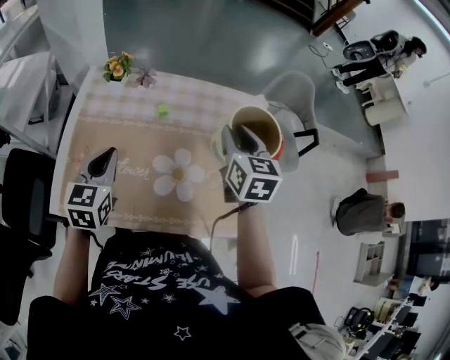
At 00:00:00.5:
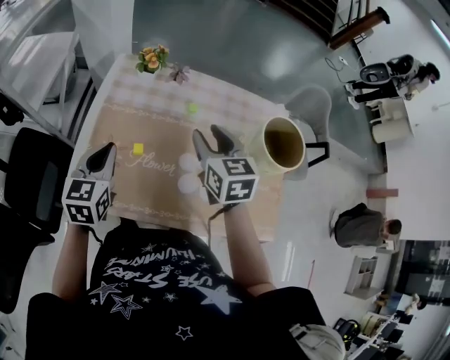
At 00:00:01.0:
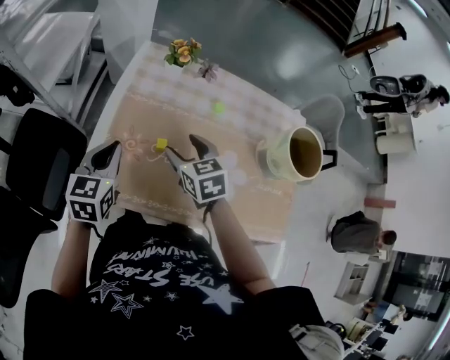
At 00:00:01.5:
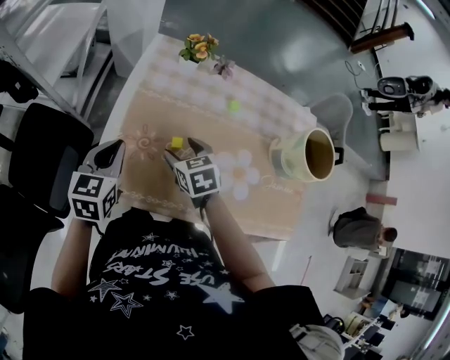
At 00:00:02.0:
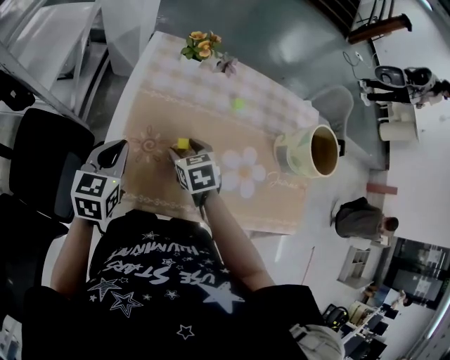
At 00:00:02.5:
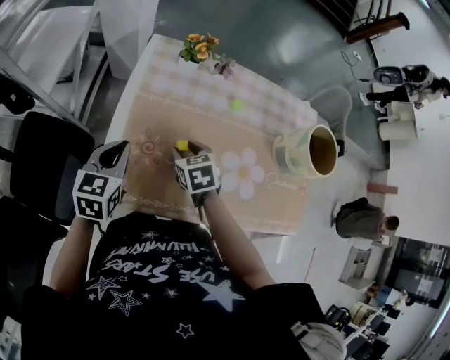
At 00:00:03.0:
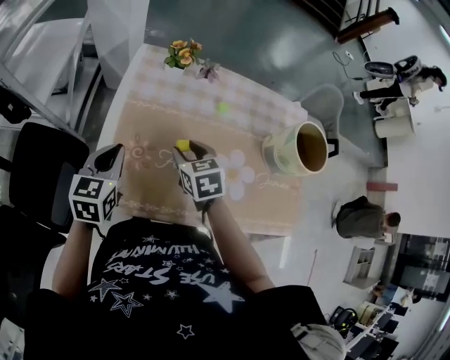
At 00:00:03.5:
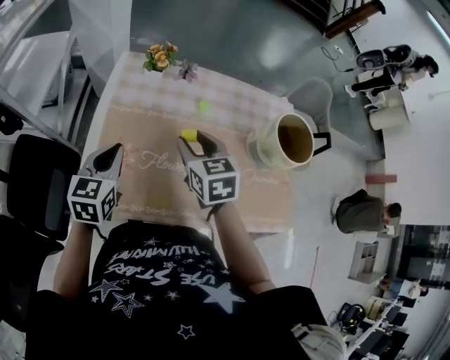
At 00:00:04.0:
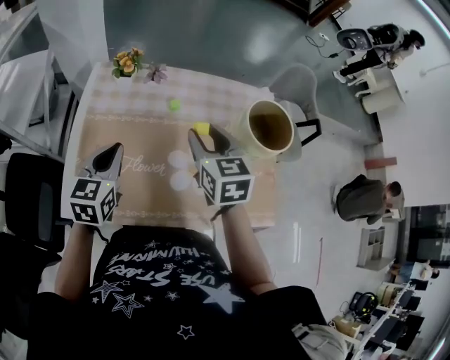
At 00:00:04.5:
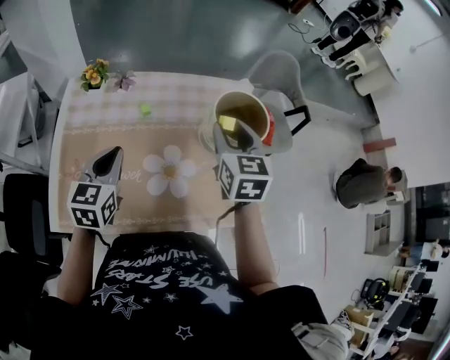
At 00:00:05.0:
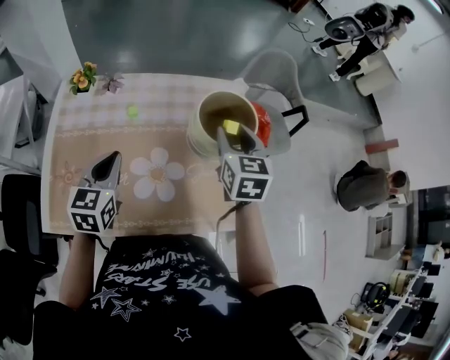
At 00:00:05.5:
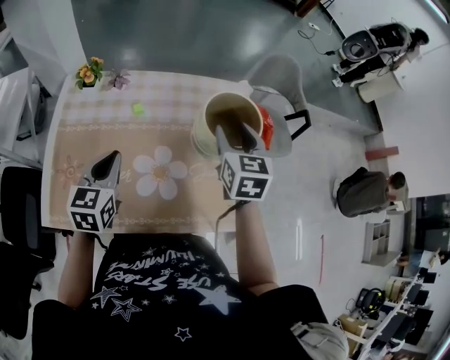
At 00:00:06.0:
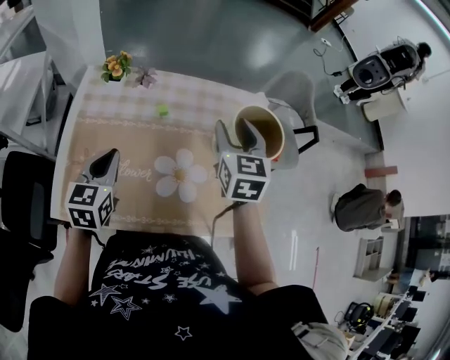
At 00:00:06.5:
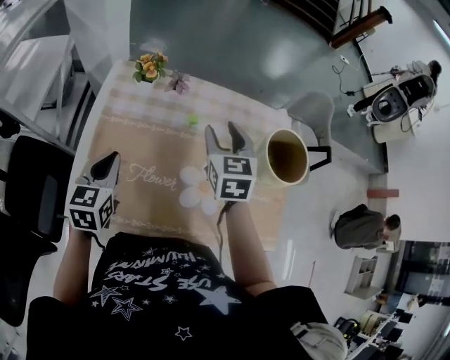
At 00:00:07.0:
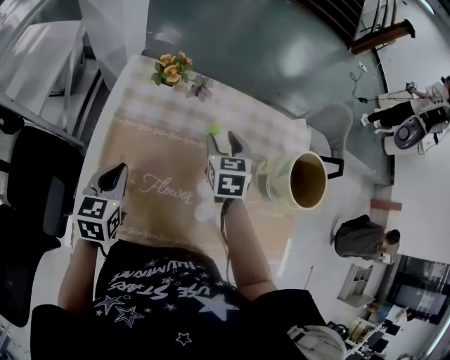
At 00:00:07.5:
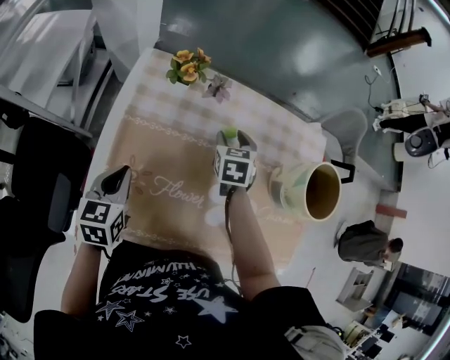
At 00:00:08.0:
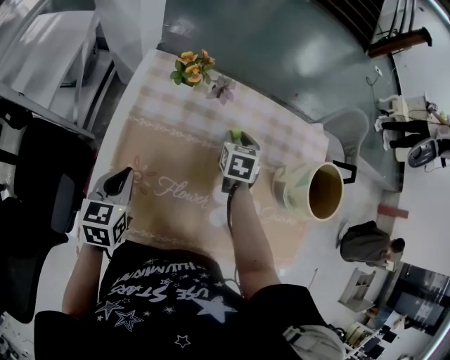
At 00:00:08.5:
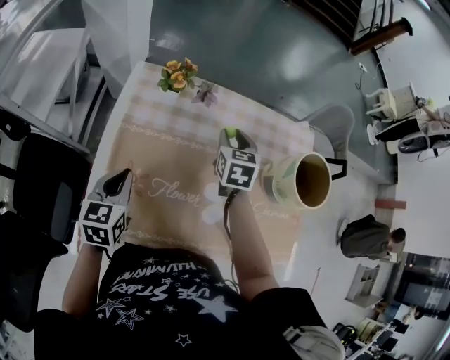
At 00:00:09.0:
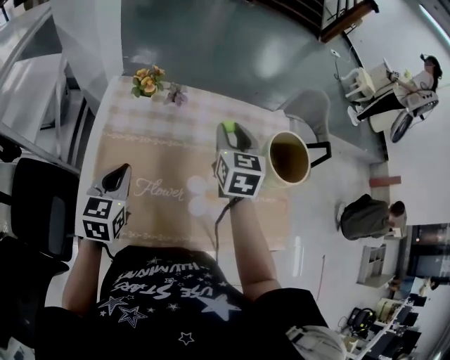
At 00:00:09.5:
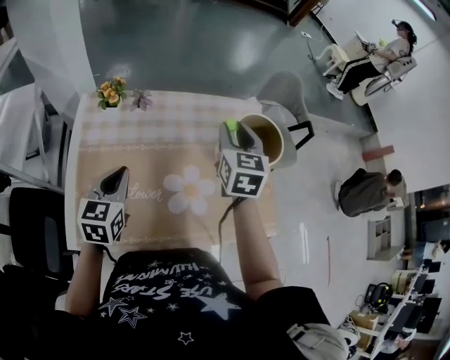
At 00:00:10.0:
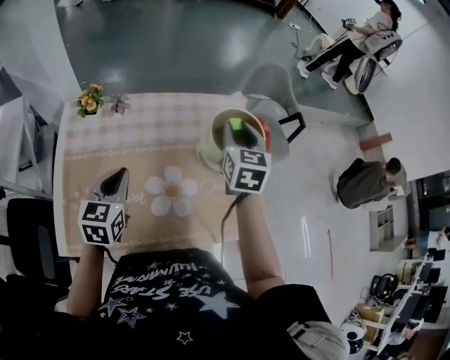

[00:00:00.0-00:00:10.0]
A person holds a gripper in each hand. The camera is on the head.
00:00:00.0 to 00:00:02.0: The right gripper moves to the left and downward, approximately 40 cm, turns by roughly 40 degrees, and opens up, while the left gripper travels to the left by roughly 20 cm.
00:00:02.0 to 00:00:04.0: The left gripper heads to the right and upward, covering some 15 cm; the right gripper is displaced to the right and upward by approximately 30 cm, and changes its angle by about 30 degrees.
00:00:04.0 to 00:00:06.0: The left gripper reaches some 15 cm to the right, then returns, while the right gripper shifts approximately 10 cm to the right and forward.
00:00:06.0 to 00:00:08.0: The left gripper moves to the left and downward, some 15 cm; the right gripper travels downward, to the left and forward by approximately 30 cm, and changes its angle by some 30 degrees.
00:00:08.0 to 00:00:10.0: The right gripper moves to the right and upward, some 35 cm, and changes its angle by approximately 30 degrees. Meanwhile the left gripper shifts some 20 cm to the right and upward, and changes its angle by roughly 20 degrees.

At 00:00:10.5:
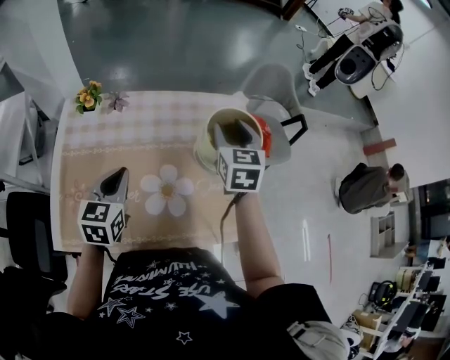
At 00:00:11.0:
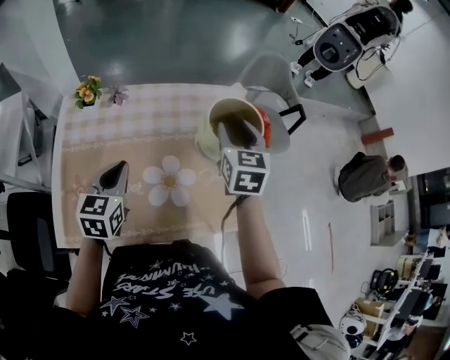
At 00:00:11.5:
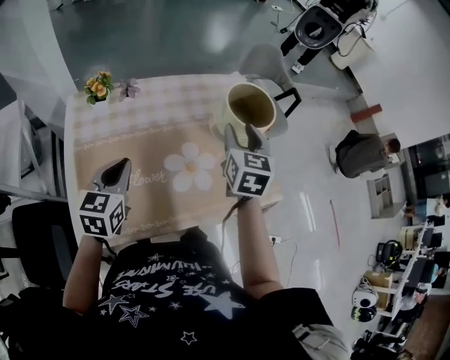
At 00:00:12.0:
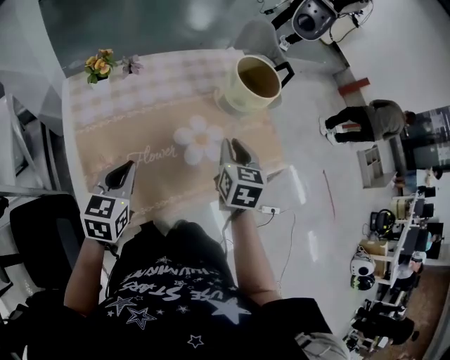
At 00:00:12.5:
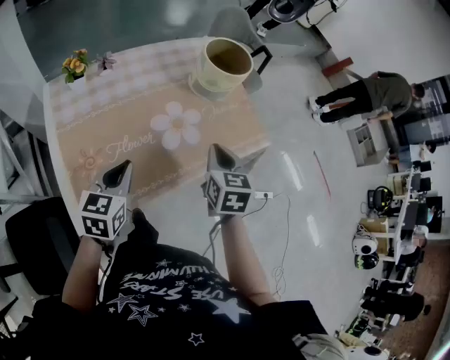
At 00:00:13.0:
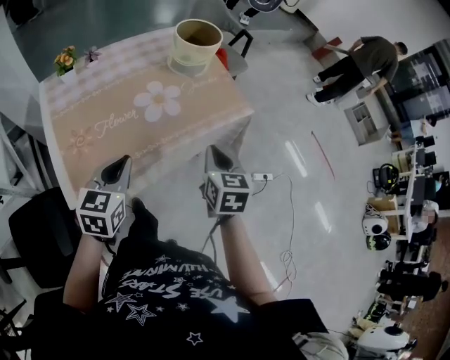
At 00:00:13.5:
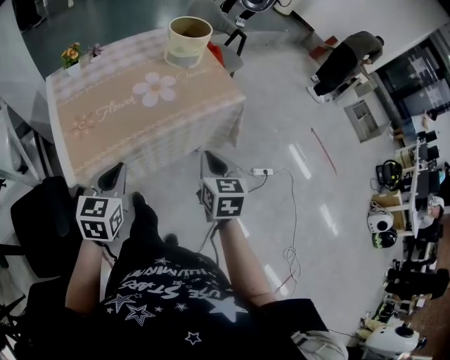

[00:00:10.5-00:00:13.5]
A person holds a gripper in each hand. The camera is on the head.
00:00:10.5 to 00:00:12.0: The left gripper goes some 15 cm backward and to the left, and rotates approximately 20 degrees, while the right gripper travels backward by about 25 cm, changes its angle by about 30 degrees, and closes its fingers.
00:00:12.0 to 00:00:13.5: The two grippers go some 30 cm backward and to the right.

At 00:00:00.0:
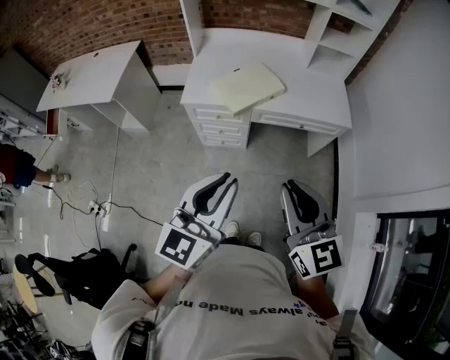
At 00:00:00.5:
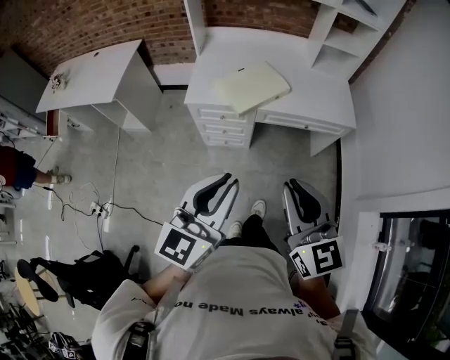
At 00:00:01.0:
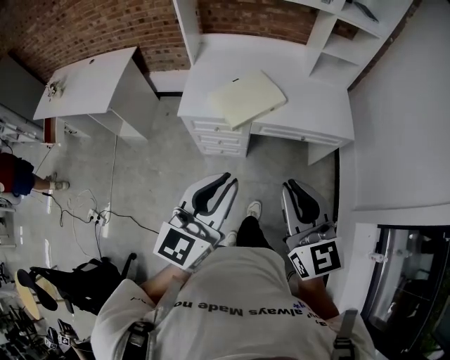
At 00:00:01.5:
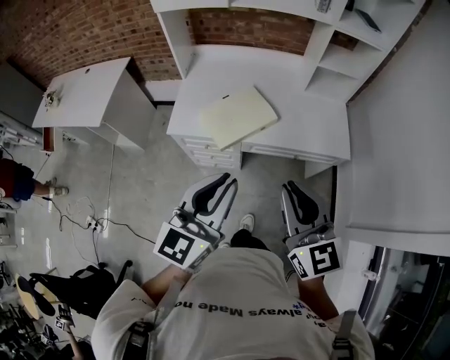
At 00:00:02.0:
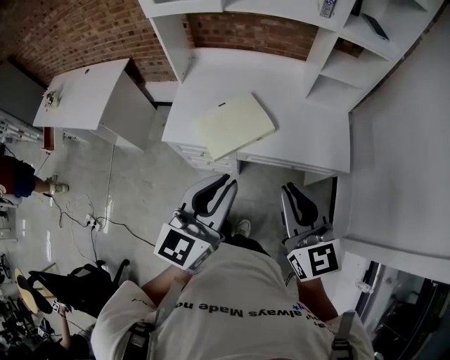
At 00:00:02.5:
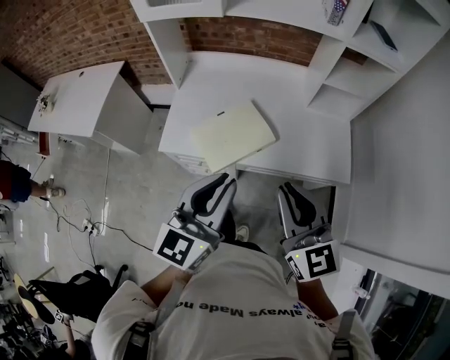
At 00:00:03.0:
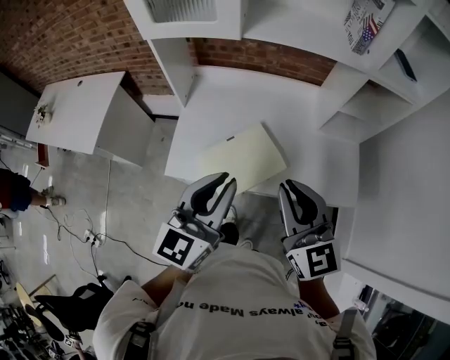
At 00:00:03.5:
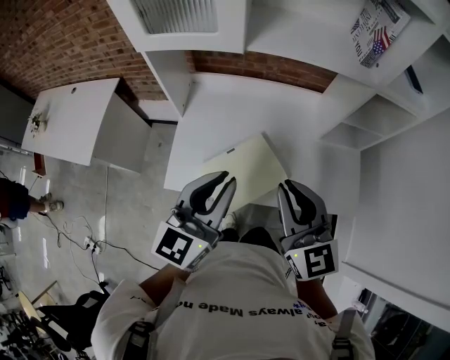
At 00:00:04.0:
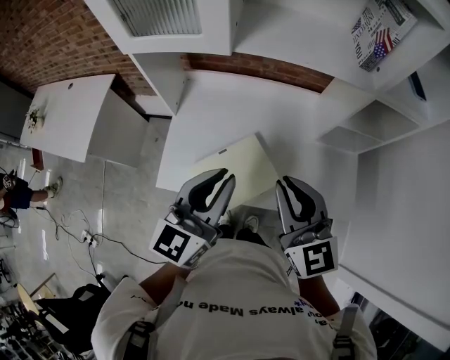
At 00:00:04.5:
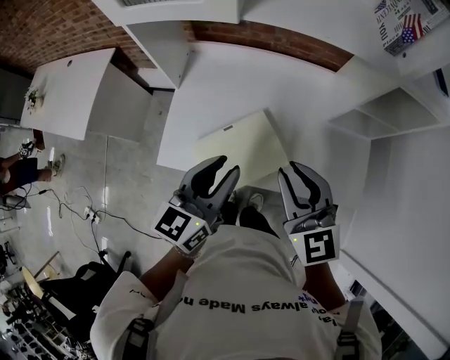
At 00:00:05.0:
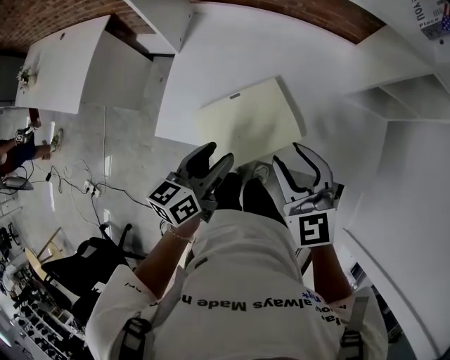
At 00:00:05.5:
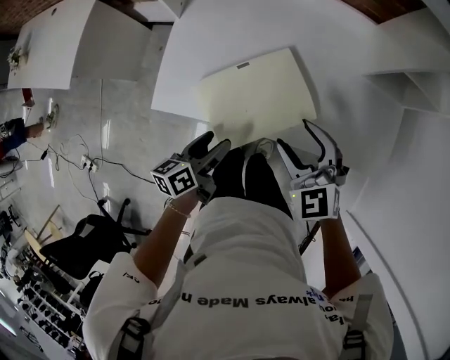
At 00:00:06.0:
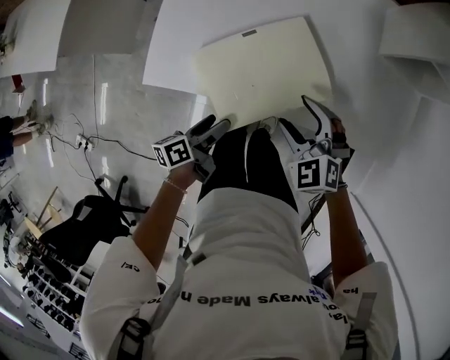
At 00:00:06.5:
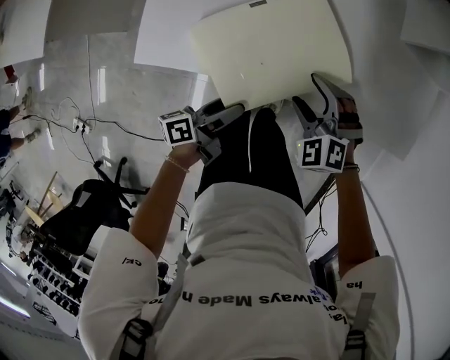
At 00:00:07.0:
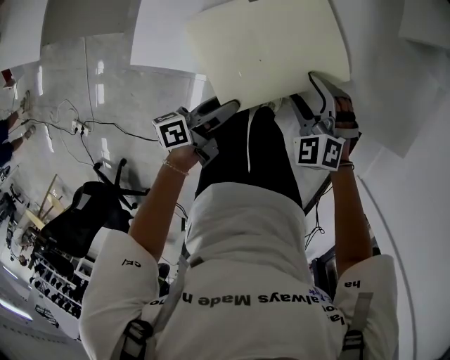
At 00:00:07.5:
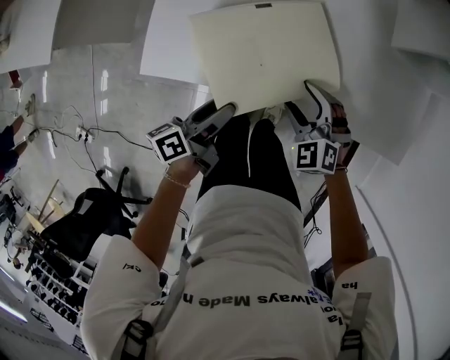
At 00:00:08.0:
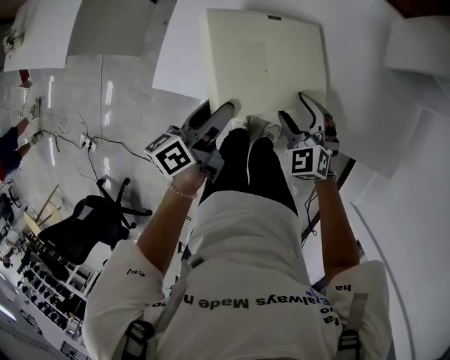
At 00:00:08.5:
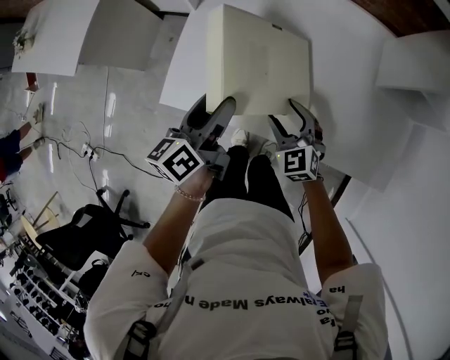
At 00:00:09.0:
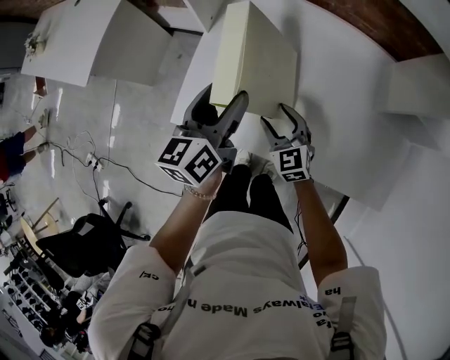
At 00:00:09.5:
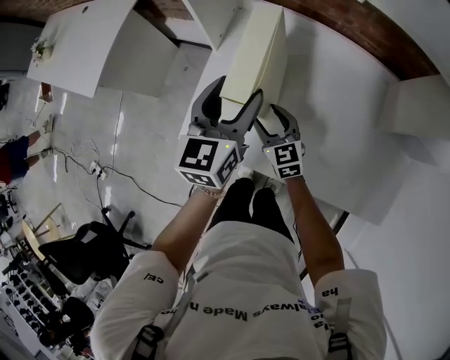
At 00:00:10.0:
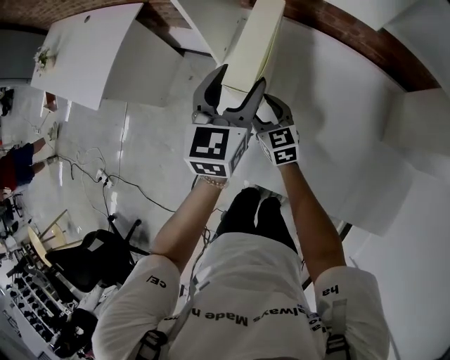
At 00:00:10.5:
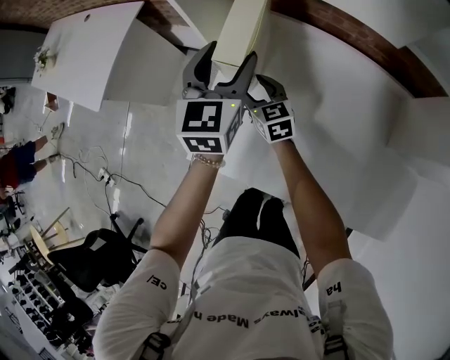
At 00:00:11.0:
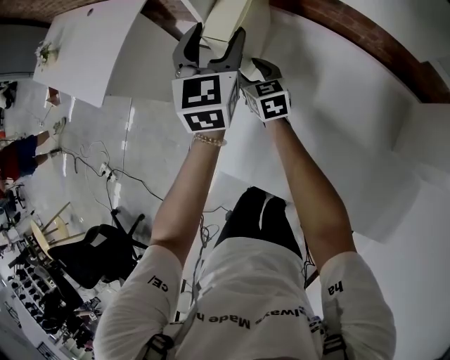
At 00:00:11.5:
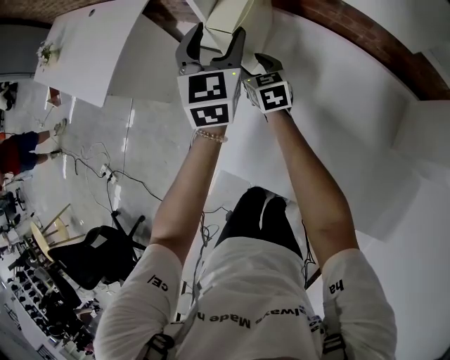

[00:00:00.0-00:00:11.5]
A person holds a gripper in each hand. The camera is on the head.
00:00:00.0 to 00:00:02.0: The two grippers go approximately 25 cm forward.
00:00:02.0 to 00:00:04.0: The two grippers go approximately 30 cm forward.
00:00:04.0 to 00:00:06.0: Both grippers travel together downward, some 40 cm. The left gripper twists roughly 60 degrees counterclockwise, seen from behind, and opens up. Meanwhile the right gripper angles its fingers downward, by approximately 40 degrees, and opens.
00:00:06.0 to 00:00:07.5: The right gripper shifts about 5 cm downward. The left gripper changes place by about 5 cm.
00:00:07.5 to 00:00:09.5: The left gripper goes roughly 30 cm forward and upward, and rolls clockwise, seen from behind, by roughly 50 degrees, while the right gripper travels forward and to the left by some 20 cm, and swivels some 40 degrees.
00:00:09.5 to 00:00:11.5: Both grippers move forward, some 20 cm. The left gripper swivels roughly 30 degrees.

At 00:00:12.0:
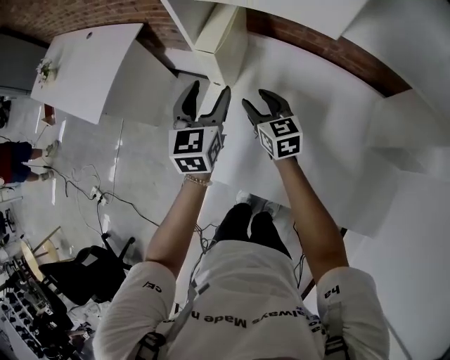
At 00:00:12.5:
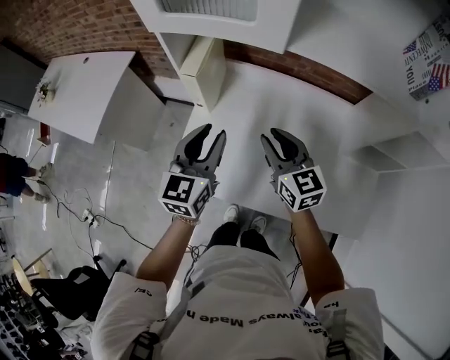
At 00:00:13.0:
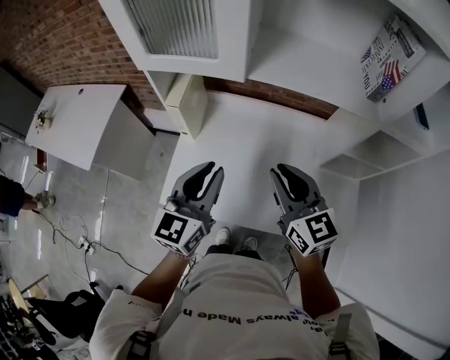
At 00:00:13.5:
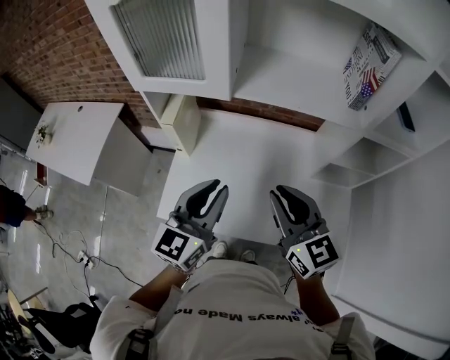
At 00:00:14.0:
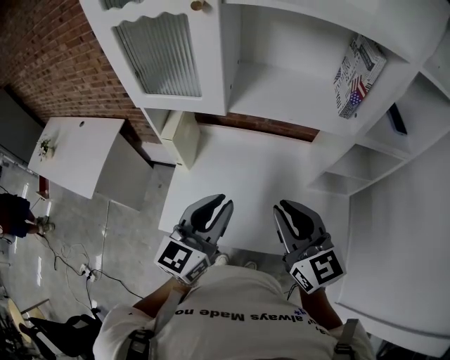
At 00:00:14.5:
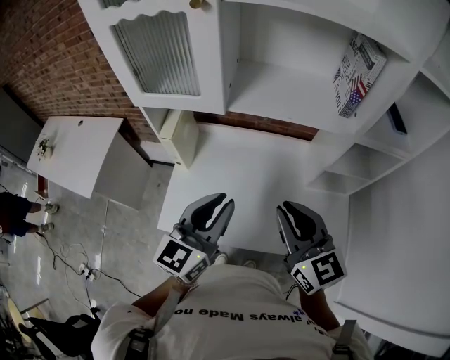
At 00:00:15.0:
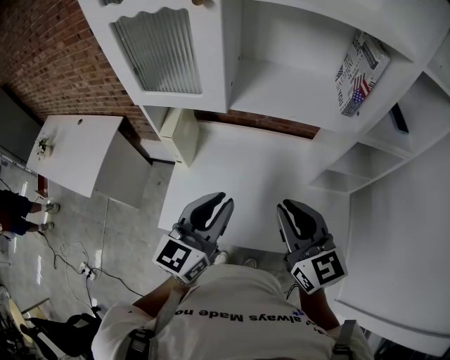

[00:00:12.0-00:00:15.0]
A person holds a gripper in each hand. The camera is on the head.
00:00:12.0 to 00:00:13.5: The left gripper goes approximately 35 cm backward, upward and to the right, rotates roughly 30 degrees, and closes up, while the right gripper heads upward, backward and to the right, covering some 40 cm, and closes its fingers.
00:00:13.5 to 00:00:15.0: The grippers make only small movements.
